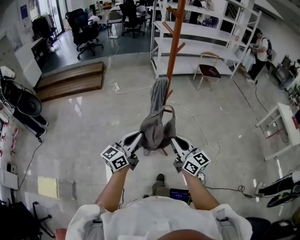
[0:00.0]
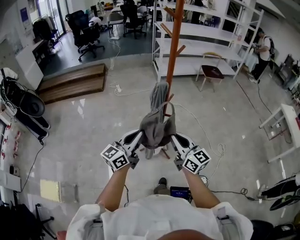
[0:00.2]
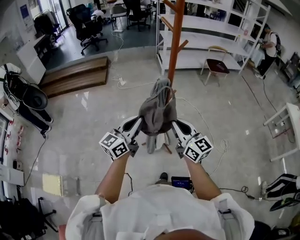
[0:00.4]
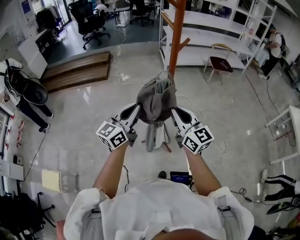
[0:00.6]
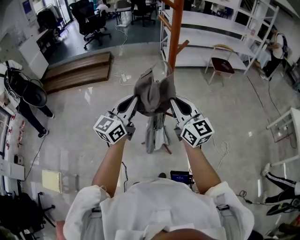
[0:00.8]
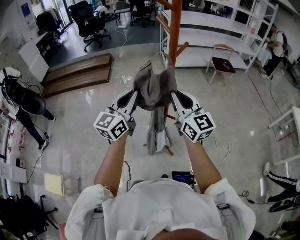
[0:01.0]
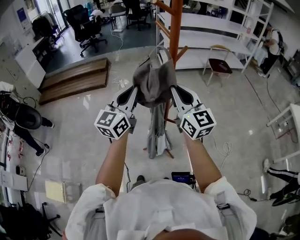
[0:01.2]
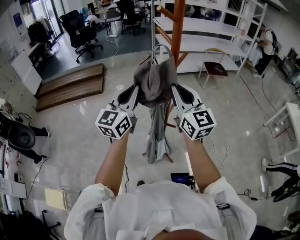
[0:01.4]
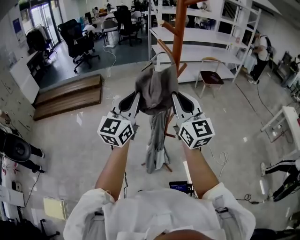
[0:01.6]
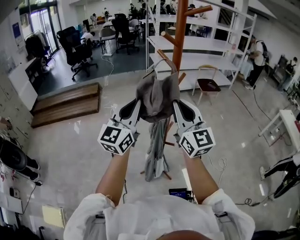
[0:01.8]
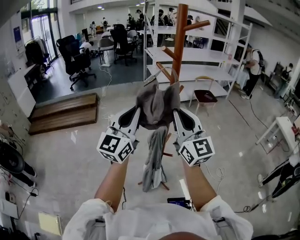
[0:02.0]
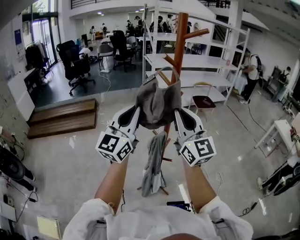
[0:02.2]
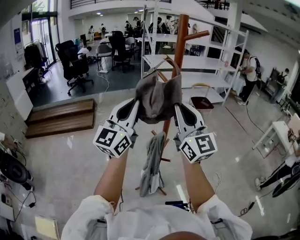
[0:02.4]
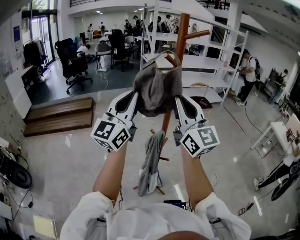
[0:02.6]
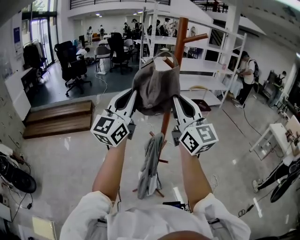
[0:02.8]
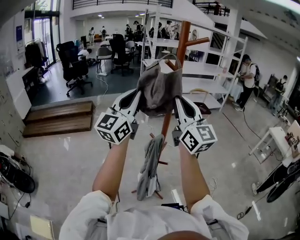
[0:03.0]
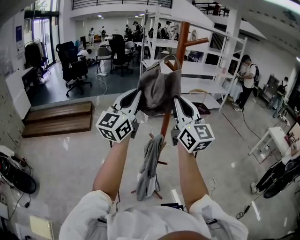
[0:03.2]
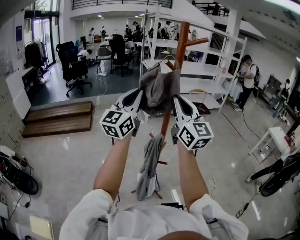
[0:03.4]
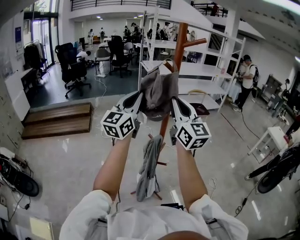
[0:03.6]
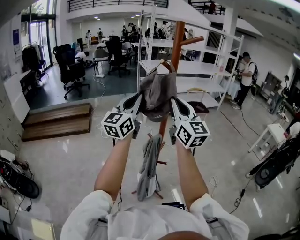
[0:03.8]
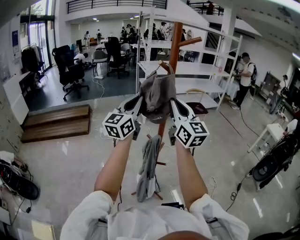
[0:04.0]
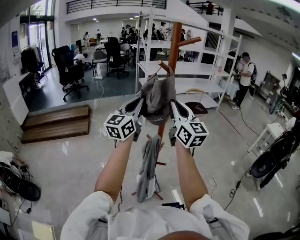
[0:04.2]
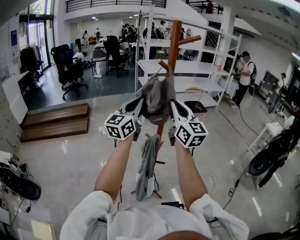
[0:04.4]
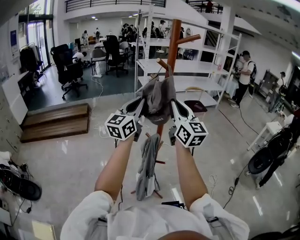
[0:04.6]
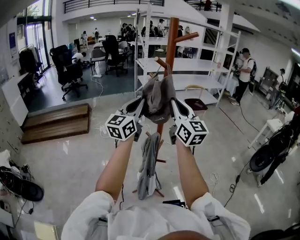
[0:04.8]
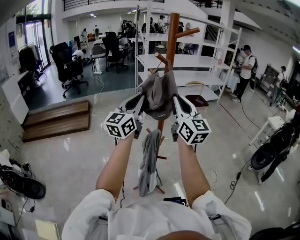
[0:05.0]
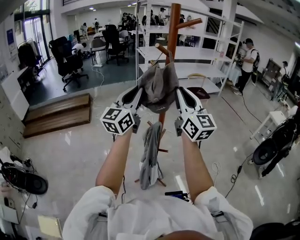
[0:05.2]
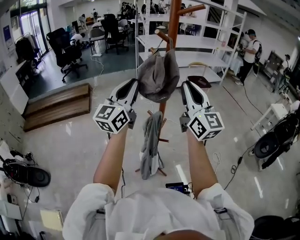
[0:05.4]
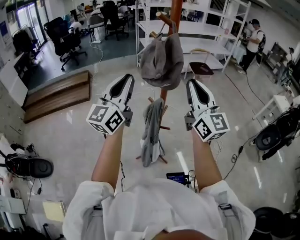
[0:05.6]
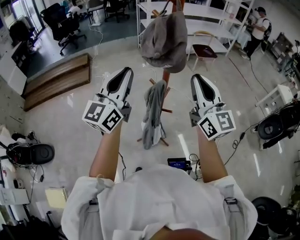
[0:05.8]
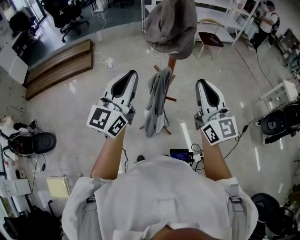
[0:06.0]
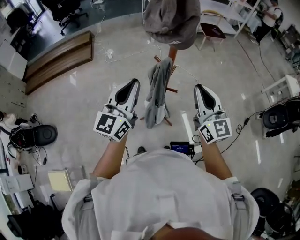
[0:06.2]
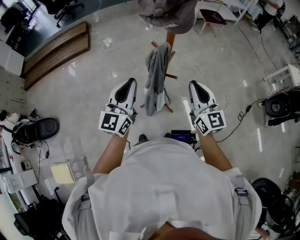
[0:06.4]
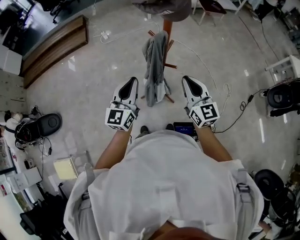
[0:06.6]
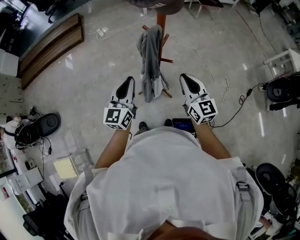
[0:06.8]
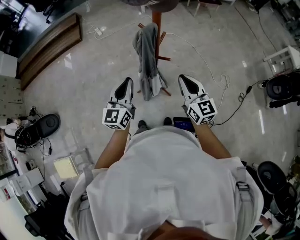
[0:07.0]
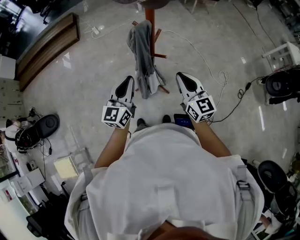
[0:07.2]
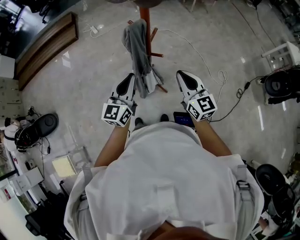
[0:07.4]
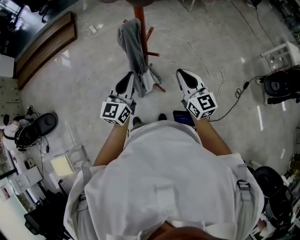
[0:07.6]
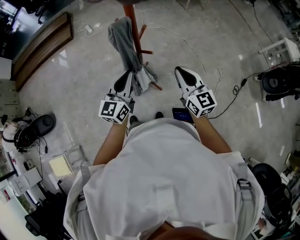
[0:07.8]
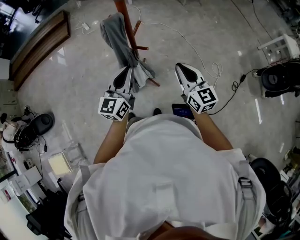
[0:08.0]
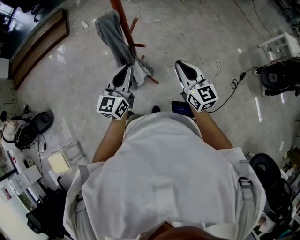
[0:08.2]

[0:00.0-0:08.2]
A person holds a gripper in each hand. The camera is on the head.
0:00.0 to 0:01.6: Both grippers travel together forward and upward, roughly 35 cm. The left gripper turns by some 30 degrees. Meanwhile the right gripper rotates some 30 degrees.
0:01.6 to 0:03.2: Both grippers move upward, approximately 15 cm.
0:03.2 to 0:05.0: The left gripper shifts approximately 5 cm downward; the right gripper changes place by about 5 cm.
0:05.0 to 0:06.6: The left gripper moves downward and backward, some 35 cm. Meanwhile the right gripper is displaced downward by approximately 35 cm, and changes its angle by some 20 degrees.
0:06.6 to 0:08.2: Both grippers move to the right, some 15 cm.

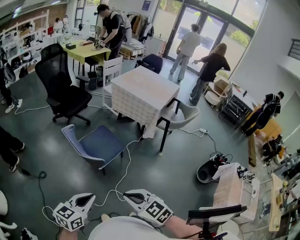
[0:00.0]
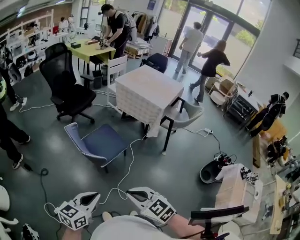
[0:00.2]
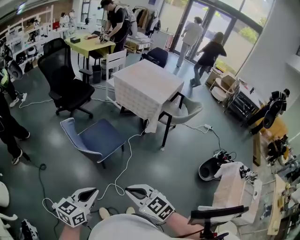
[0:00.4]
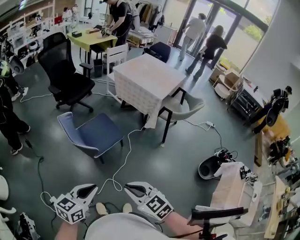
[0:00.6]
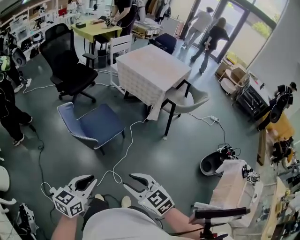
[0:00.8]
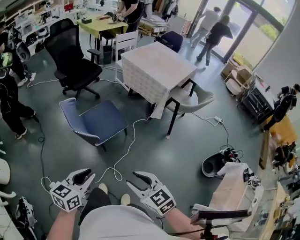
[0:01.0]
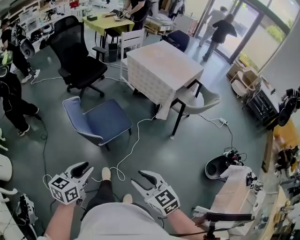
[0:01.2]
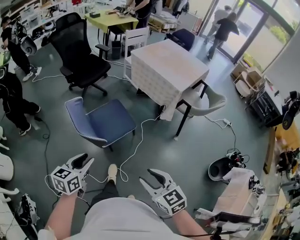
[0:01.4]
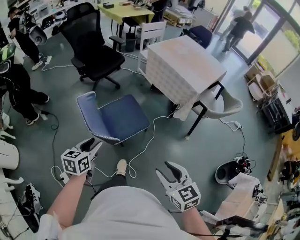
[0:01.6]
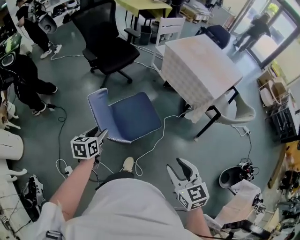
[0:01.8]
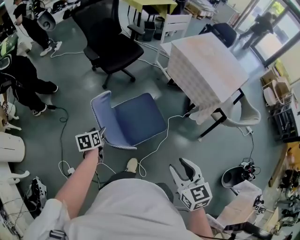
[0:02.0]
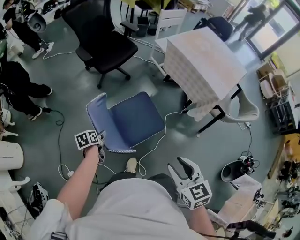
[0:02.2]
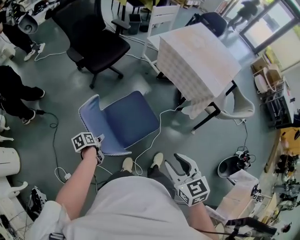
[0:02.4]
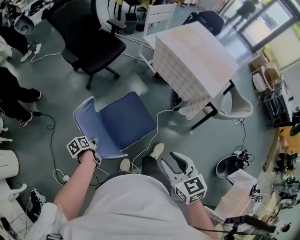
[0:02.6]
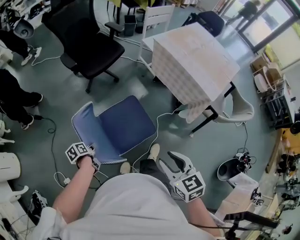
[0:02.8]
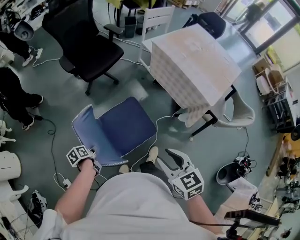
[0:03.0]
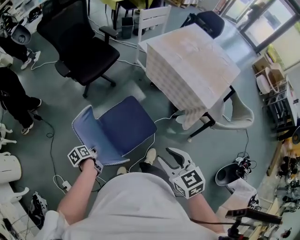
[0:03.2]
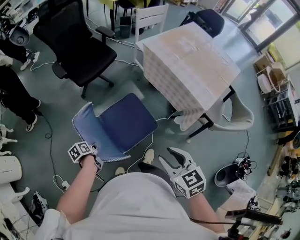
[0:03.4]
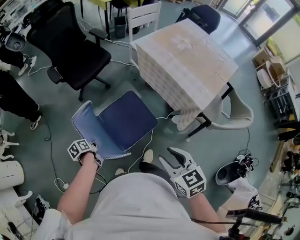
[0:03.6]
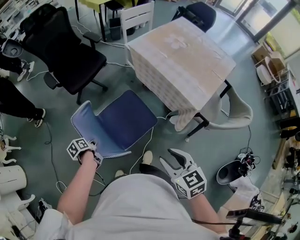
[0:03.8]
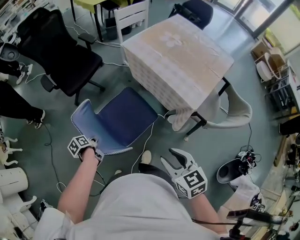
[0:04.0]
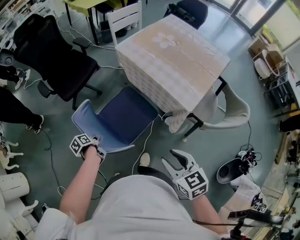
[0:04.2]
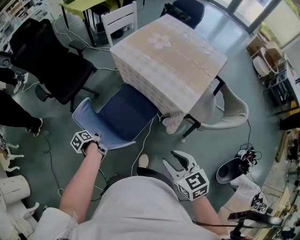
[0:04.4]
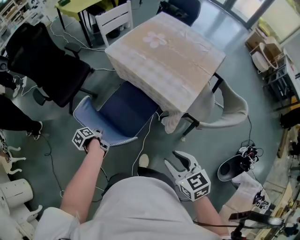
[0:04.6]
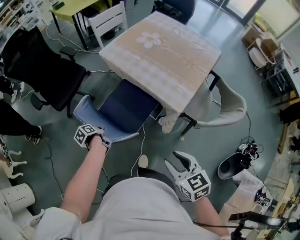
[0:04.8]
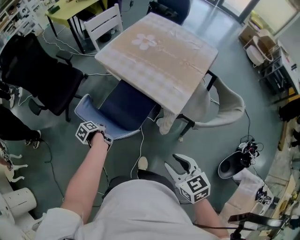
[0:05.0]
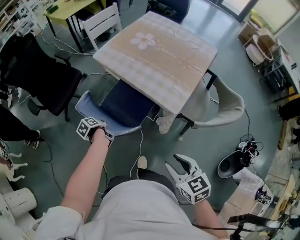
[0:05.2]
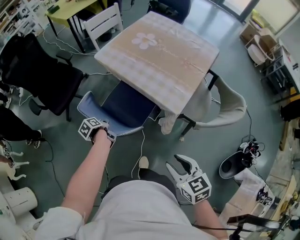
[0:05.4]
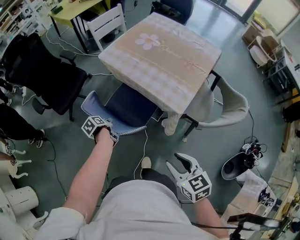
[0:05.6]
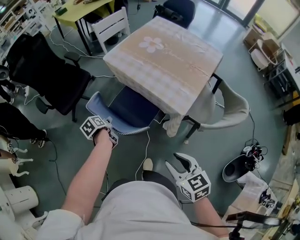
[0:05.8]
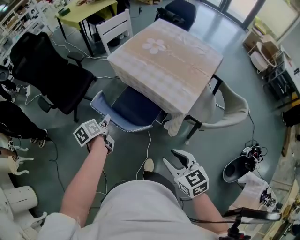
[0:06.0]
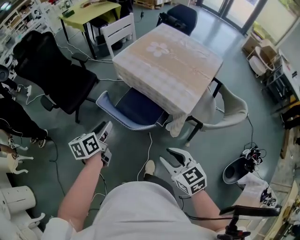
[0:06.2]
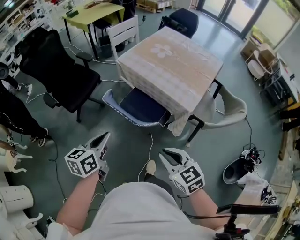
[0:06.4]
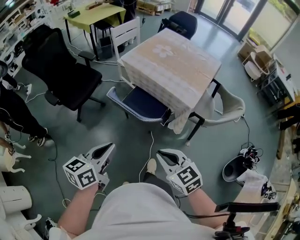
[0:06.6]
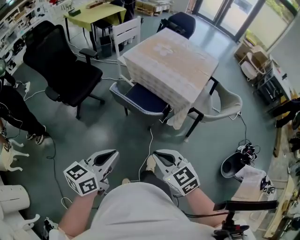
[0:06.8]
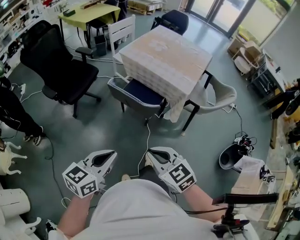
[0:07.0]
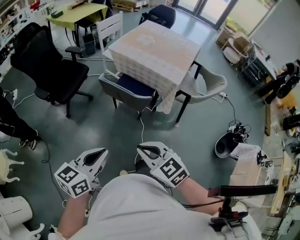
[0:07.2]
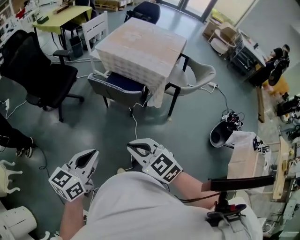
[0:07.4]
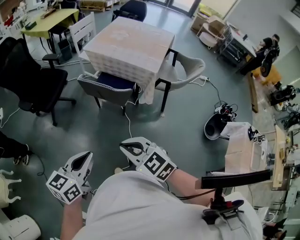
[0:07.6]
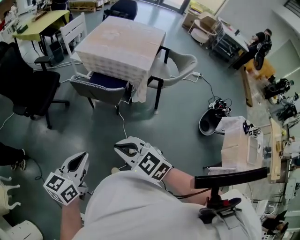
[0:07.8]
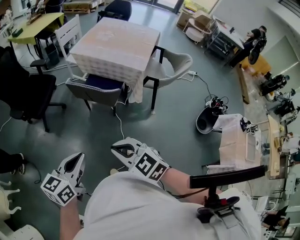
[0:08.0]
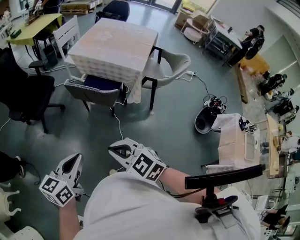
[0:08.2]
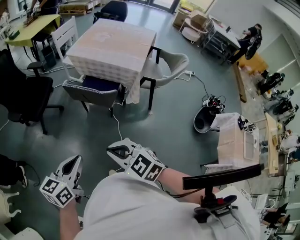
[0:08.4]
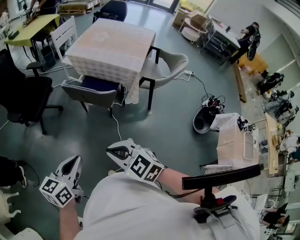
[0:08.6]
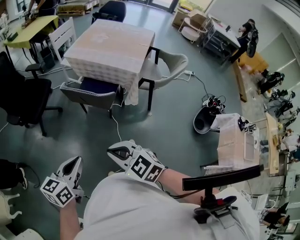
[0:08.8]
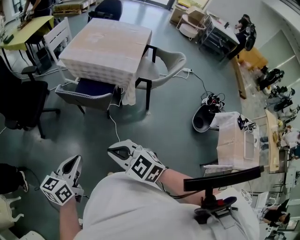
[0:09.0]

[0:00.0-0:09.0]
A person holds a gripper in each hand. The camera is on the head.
0:00.0 to 0:01.6: The left gripper shifts roughly 25 cm forward, changes its angle by some 30 degrees, and opens up. Meanwhile the right gripper is displaced to the right and forward by roughly 25 cm, and opens its fingers.
0:01.6 to 0:03.0: The right gripper travels forward by about 25 cm; the left gripper goes approximately 30 cm downward and forward, rotates around the line of its fingers by about 50 degrees, counterclockwise from behind, and closes up.
0:03.0 to 0:04.4: The left gripper moves to the right and forward, approximately 35 cm; the right gripper travels to the right by some 25 cm.
0:04.4 to 0:06.0: The left gripper moves upward, forward and to the right, about 20 cm, changes its angle by some 30 degrees, and opens its fingers.
0:06.0 to 0:07.6: The left gripper goes roughly 40 cm backward, turns by about 60 degrees, and closes its fingers. Meanwhile the right gripper heads to the left and backward, covering about 35 cm, and closes.
0:07.6 to 0:09.0: The left gripper shifts by roughly 5 cm.

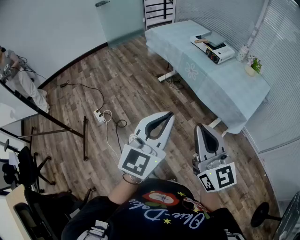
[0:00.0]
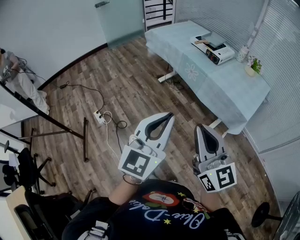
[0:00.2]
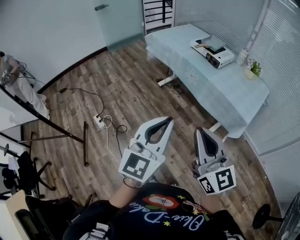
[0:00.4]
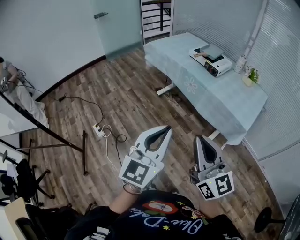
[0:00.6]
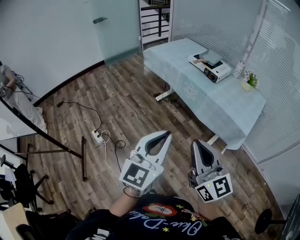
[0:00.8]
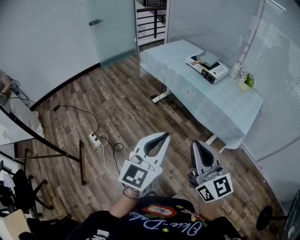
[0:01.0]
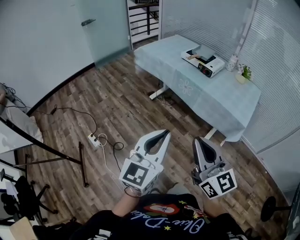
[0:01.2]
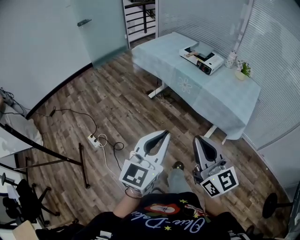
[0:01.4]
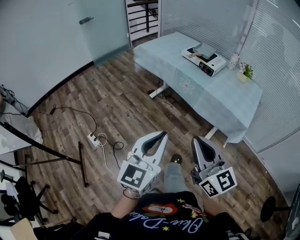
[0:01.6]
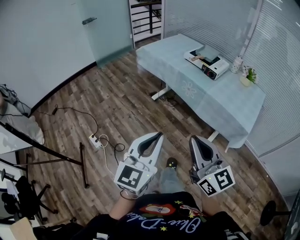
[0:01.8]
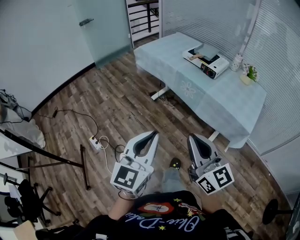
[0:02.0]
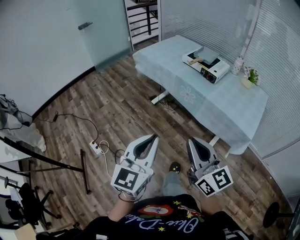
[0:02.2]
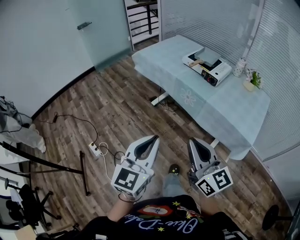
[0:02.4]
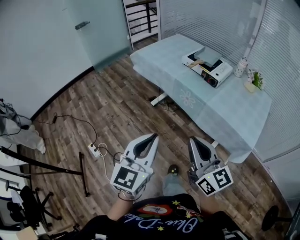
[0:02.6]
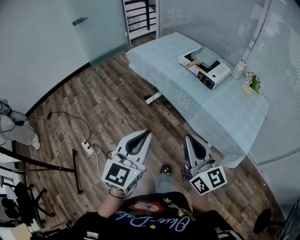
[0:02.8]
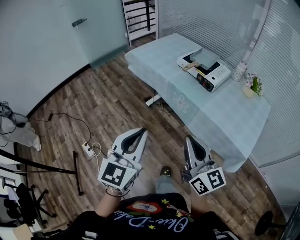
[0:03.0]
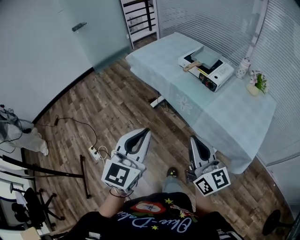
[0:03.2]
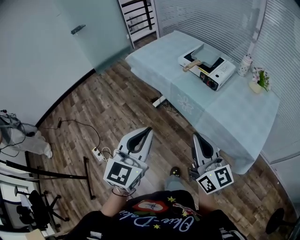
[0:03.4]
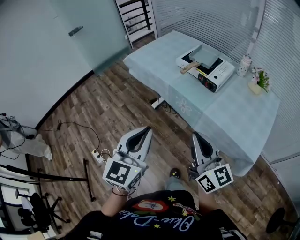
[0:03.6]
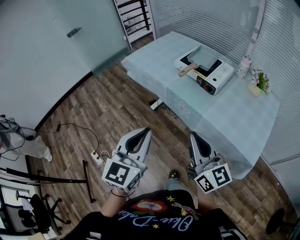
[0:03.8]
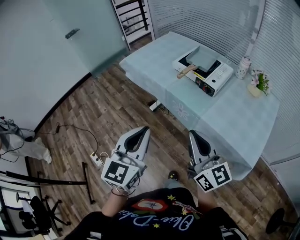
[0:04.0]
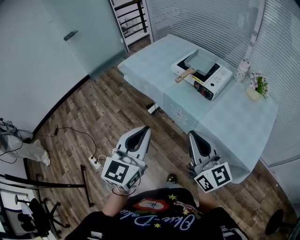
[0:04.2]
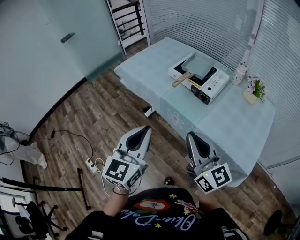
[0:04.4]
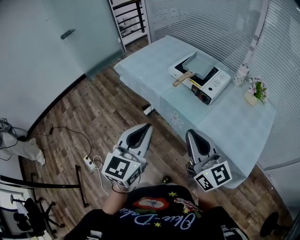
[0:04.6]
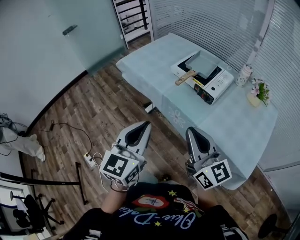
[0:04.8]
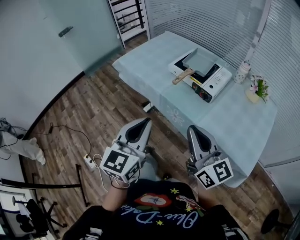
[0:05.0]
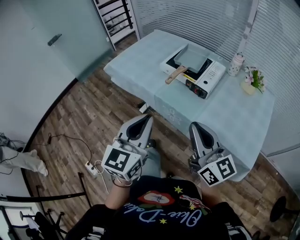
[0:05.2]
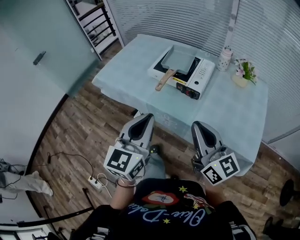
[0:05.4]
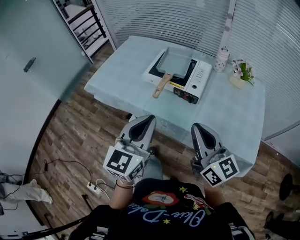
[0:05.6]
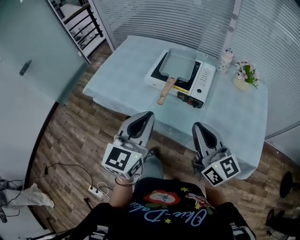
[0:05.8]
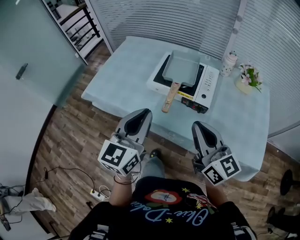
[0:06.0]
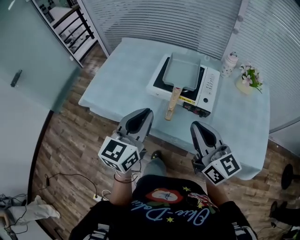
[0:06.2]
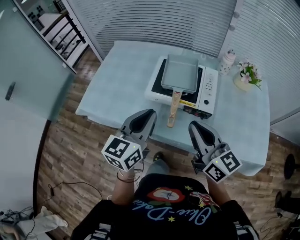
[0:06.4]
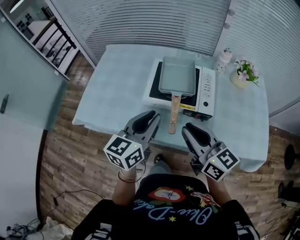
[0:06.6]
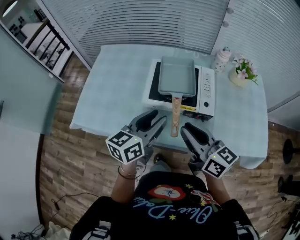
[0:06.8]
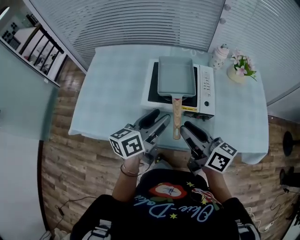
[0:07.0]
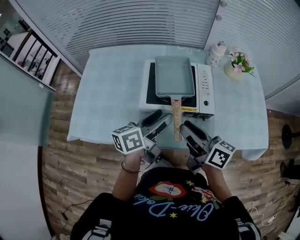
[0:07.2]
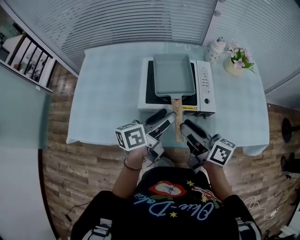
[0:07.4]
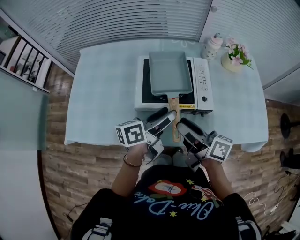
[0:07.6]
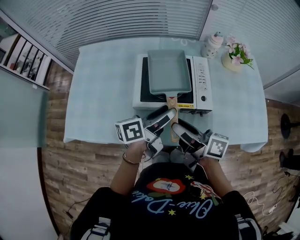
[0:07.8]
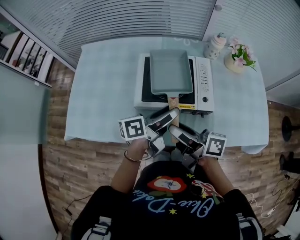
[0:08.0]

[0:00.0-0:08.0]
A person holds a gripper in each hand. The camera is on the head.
0:00.0 to 0:01.6: The left gripper heads to the left and forward, covering about 10 cm; the right gripper goes approximately 10 cm forward and to the left.
0:01.6 to 0:03.2: The left gripper travels forward by approximately 25 cm. Meanwhile the right gripper travels forward and to the right by some 25 cm.
0:03.2 to 0:04.8: Both grippers travel together forward, some 15 cm.
0:04.8 to 0:06.4: The left gripper changes place by about 30 cm, and rotates some 40 degrees. The right gripper shifts by approximately 25 cm, and turns by some 30 degrees.
0:06.4 to 0:08.0: The right gripper heads downward, to the left and forward, covering some 15 cm, rolls clockwise, seen from behind, by about 50 degrees, and opens up. The left gripper heads forward, downward and to the right, covering roughly 15 cm, rolls counterclockwise, seen from behind, by some 50 degrees, and opens.
